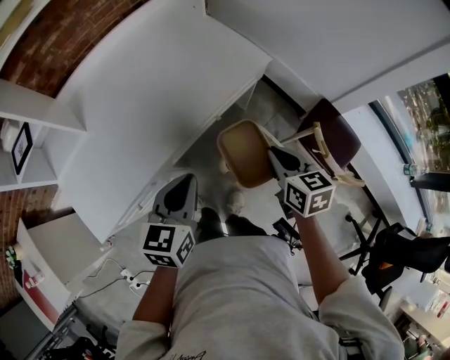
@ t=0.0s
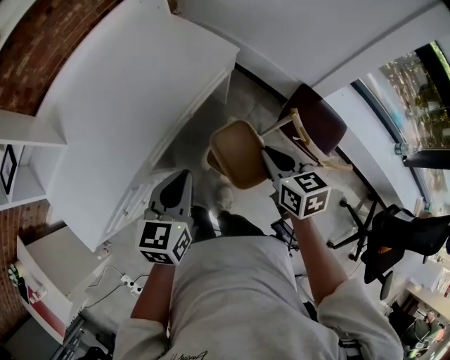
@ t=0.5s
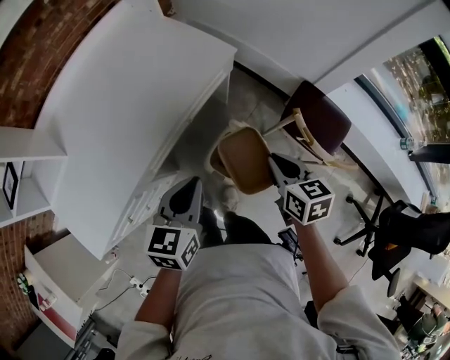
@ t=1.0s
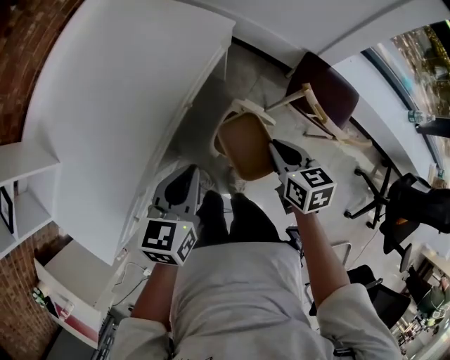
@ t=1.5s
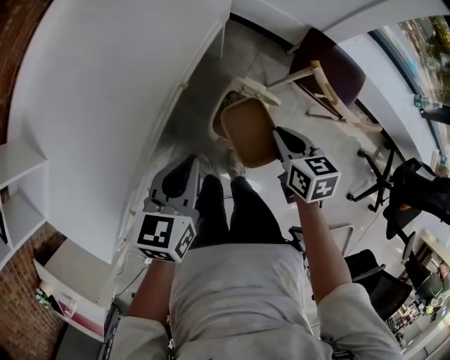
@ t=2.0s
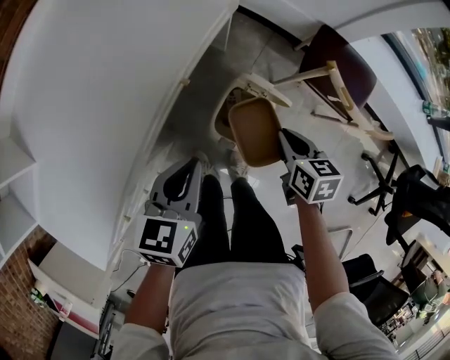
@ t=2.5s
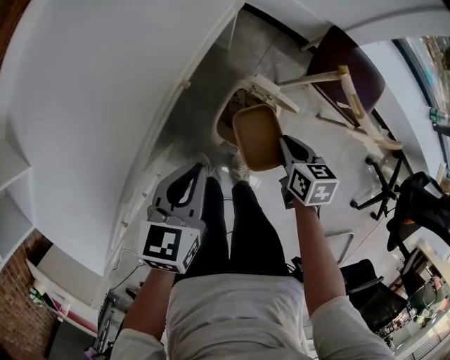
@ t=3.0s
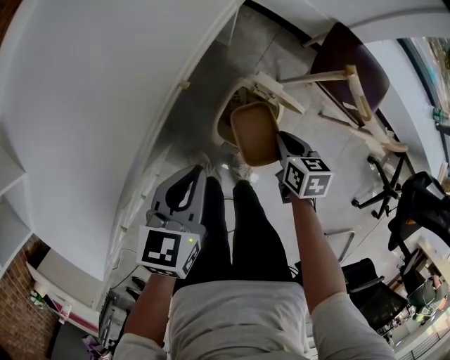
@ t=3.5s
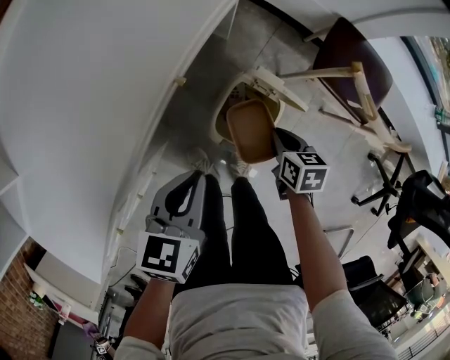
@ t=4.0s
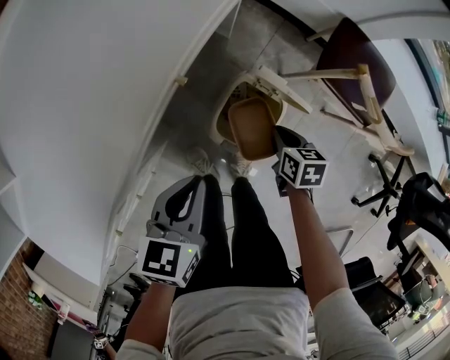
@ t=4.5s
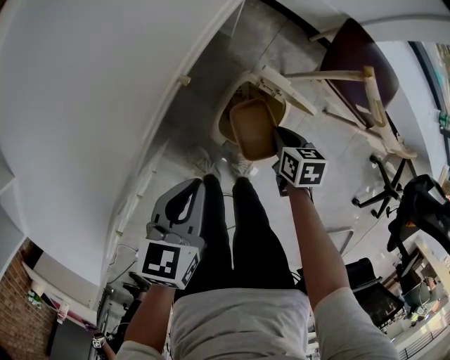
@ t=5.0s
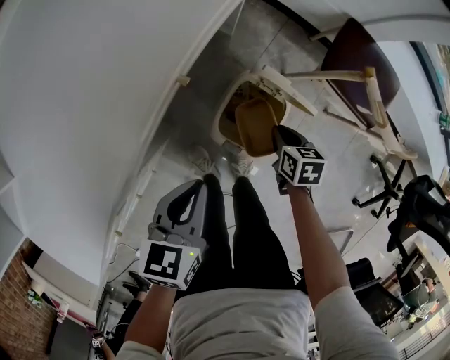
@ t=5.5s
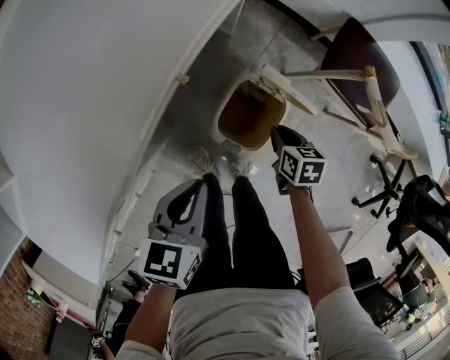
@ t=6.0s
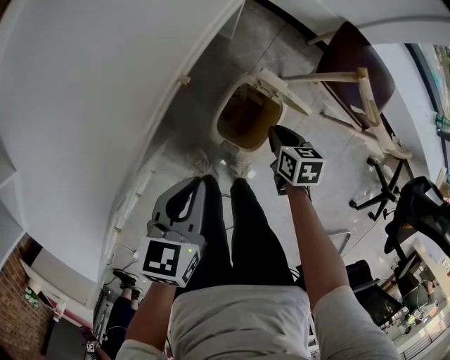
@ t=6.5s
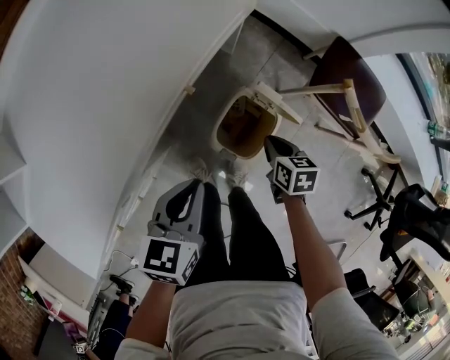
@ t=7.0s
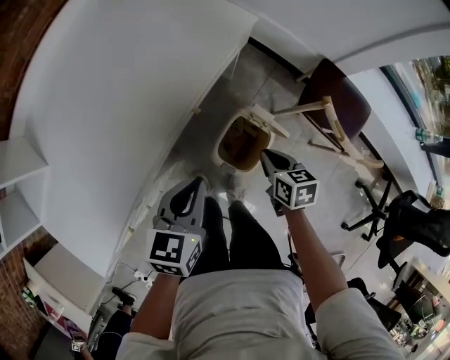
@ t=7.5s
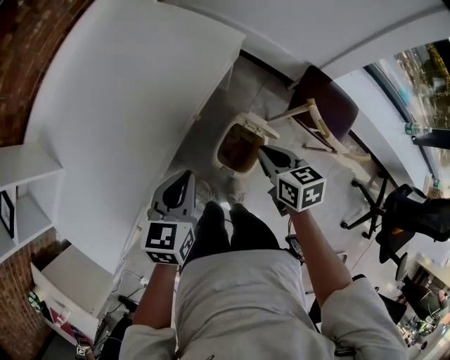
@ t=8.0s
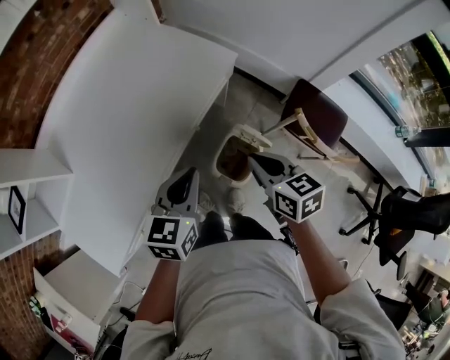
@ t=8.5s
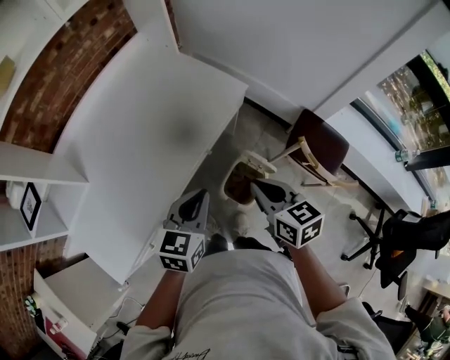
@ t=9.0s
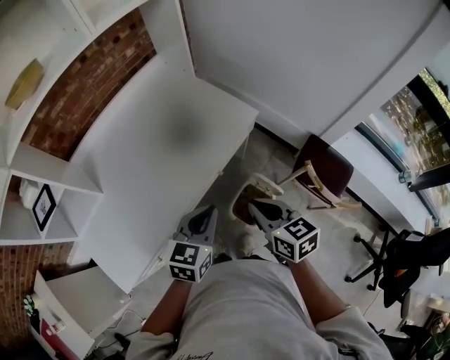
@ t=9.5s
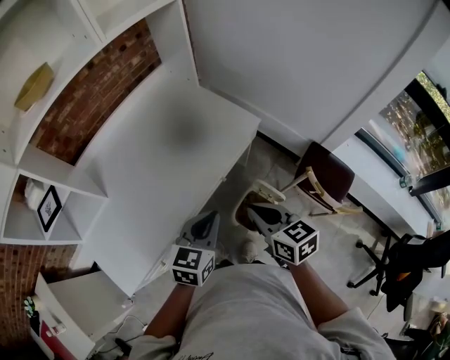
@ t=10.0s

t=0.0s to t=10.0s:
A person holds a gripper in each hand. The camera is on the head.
t=0.0s to t=2.0s: Both grippers travel together downward and to the right, approximately 15 cm. The right gripper turns by about 20 degrees.
t=2.0s to t=4.0s: The left gripper is displaced downward by approximately 10 cm. The right gripper heads downward, covering approximately 20 cm.
t=4.0s to t=6.0s: The grippers stay close to where they were, moving slightly.
t=6.0s to t=8.0s: The right gripper heads upward, covering some 30 cm, and changes its angle by approximately 20 degrees. Meanwhile the left gripper shifts approximately 15 cm upward.
t=8.0s to t=10.0s: The right gripper shifts roughly 20 cm upward and to the left, and turns by roughly 20 degrees, while the left gripper moves upward, about 10 cm.

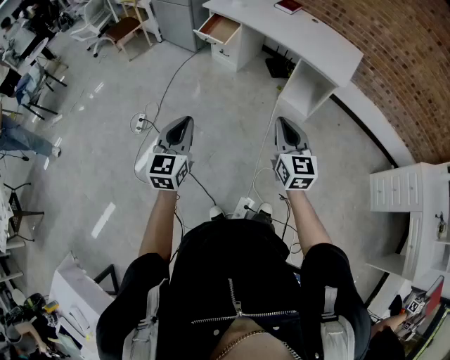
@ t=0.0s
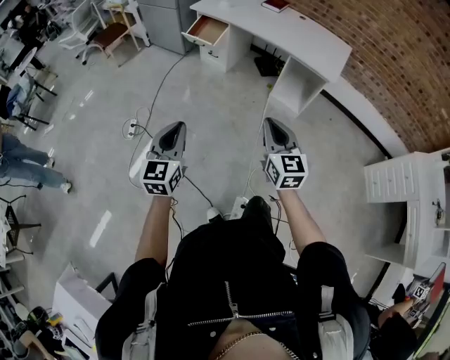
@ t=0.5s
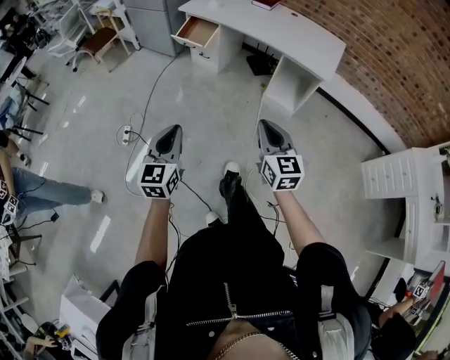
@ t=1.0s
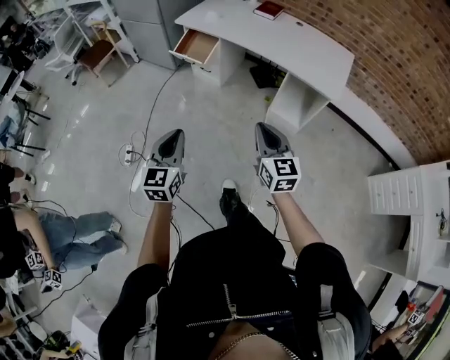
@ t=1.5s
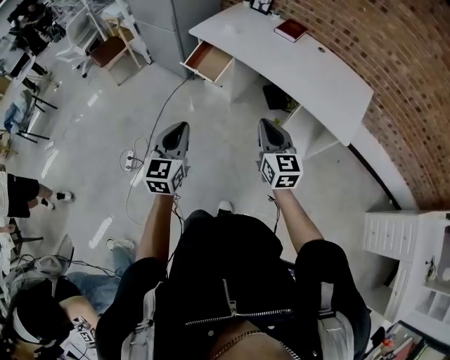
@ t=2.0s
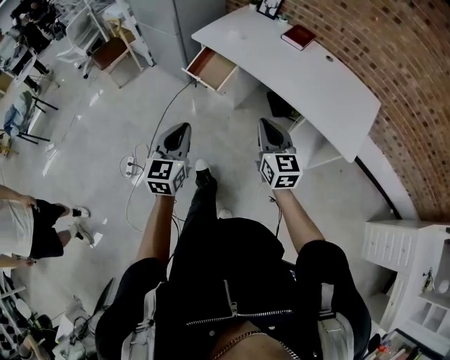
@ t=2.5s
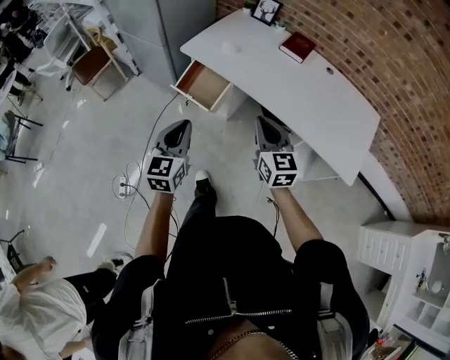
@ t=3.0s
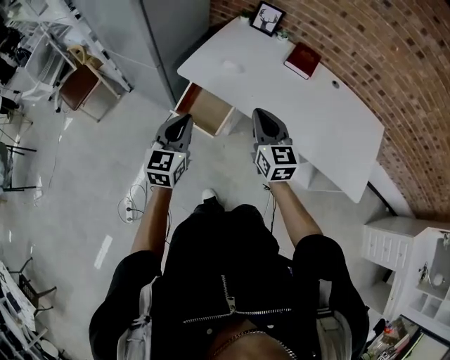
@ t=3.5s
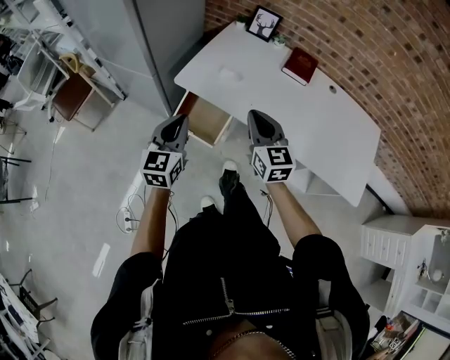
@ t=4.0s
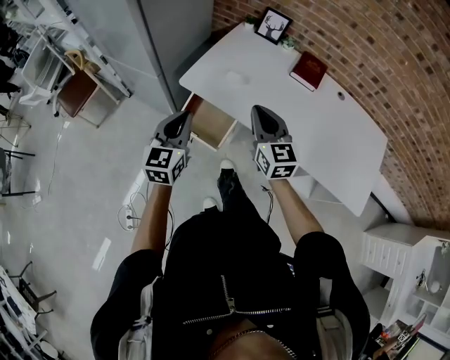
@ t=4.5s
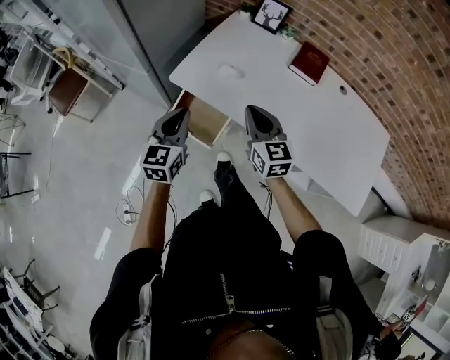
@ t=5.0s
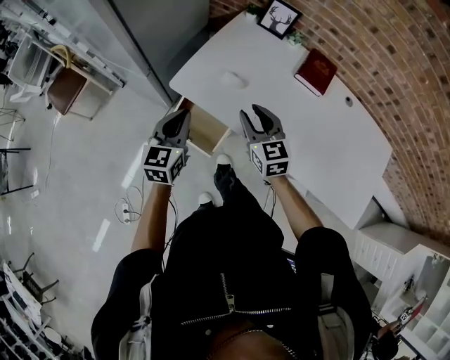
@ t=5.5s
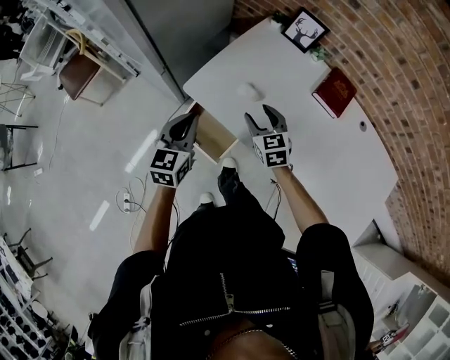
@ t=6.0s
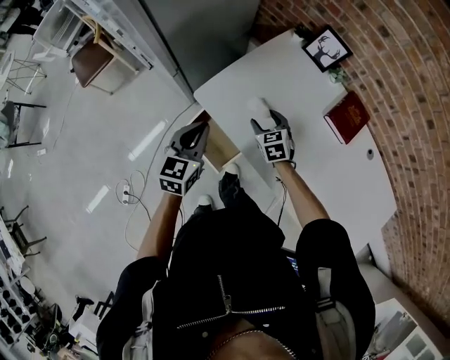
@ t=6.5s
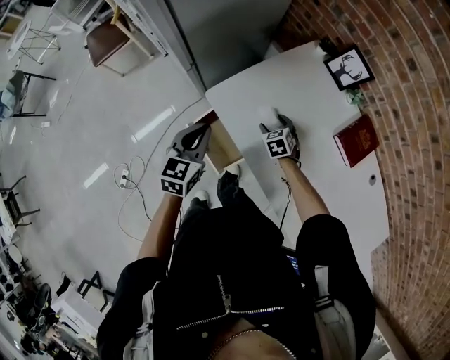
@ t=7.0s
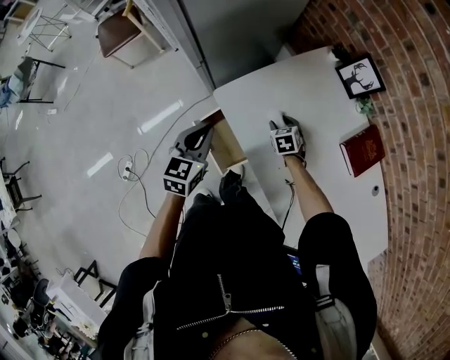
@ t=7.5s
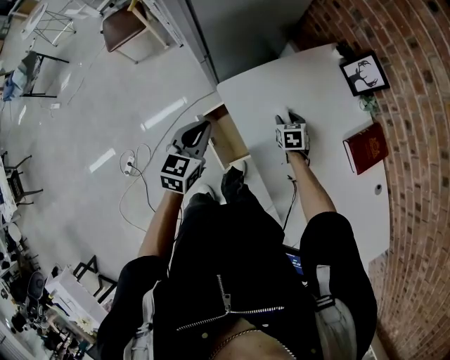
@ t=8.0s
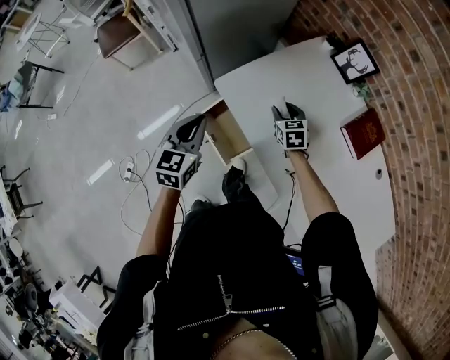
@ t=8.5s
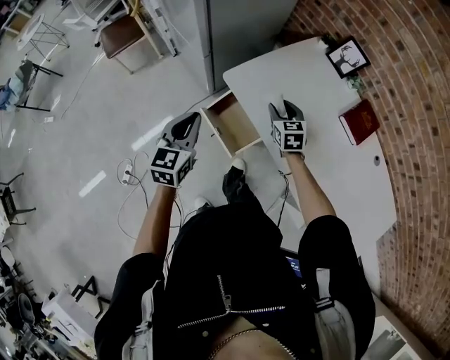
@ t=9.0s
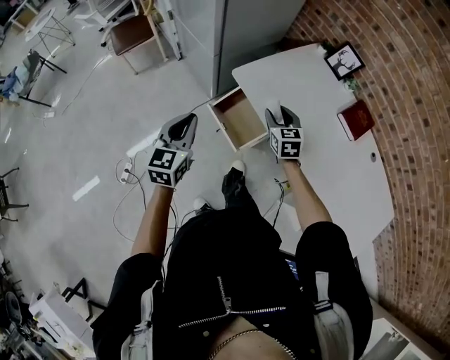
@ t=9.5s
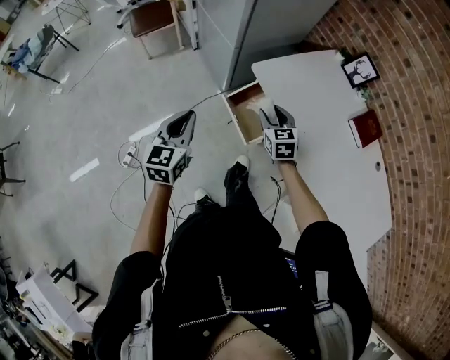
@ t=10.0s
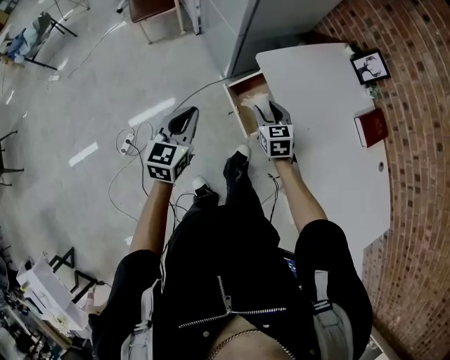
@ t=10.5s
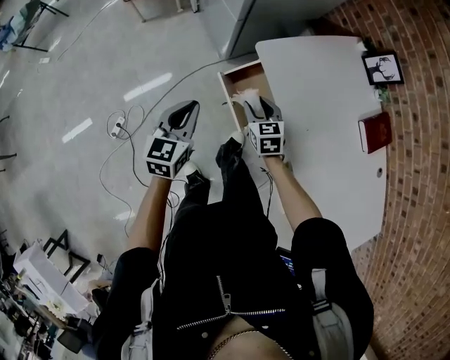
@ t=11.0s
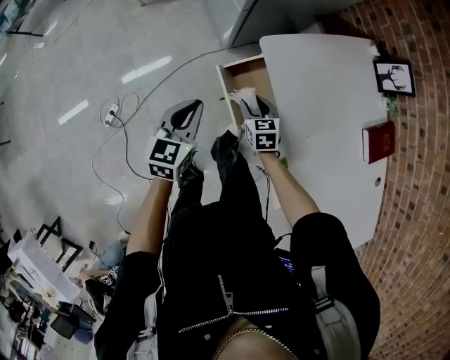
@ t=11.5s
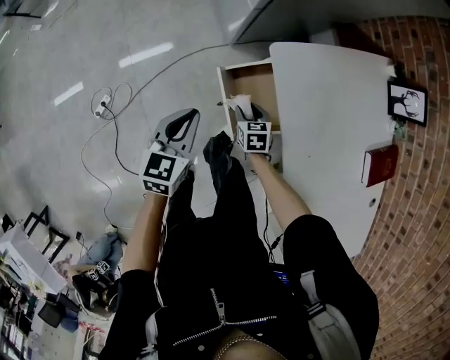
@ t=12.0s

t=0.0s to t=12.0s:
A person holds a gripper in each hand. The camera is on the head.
t=0.0s to t=2.0s: The two grippers go some 35 cm forward.
t=2.0s to t=4.0s: The pair of grippers is taken forward, roughly 50 cm.
t=4.0s to t=6.0s: The right gripper is displaced forward and downward by some 25 cm, changes its angle by roughly 30 degrees, and opens its fingers, while the left gripper moves forward, some 15 cm.
t=6.0s to t=8.0s: The left gripper ends up roughly 5 cm from where it was. Meanwhile the right gripper is displaced downward and forward by some 20 cm, and turns by roughly 20 degrees.
t=8.0s to t=10.0s: The right gripper goes roughly 35 cm backward, to the left and upward, and rotates some 30 degrees; the left gripper goes some 25 cm backward and to the left.
t=10.0s to t=12.0s: The left gripper moves downward and forward, some 20 cm, while the right gripper moves downward, approximately 25 cm, and rotates approximately 30 degrees.

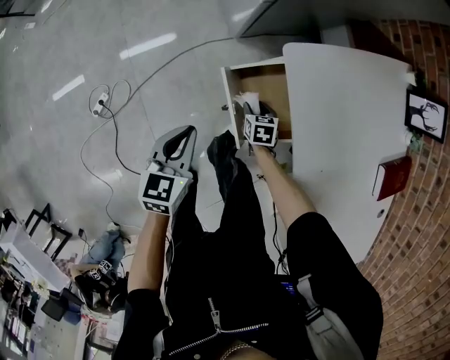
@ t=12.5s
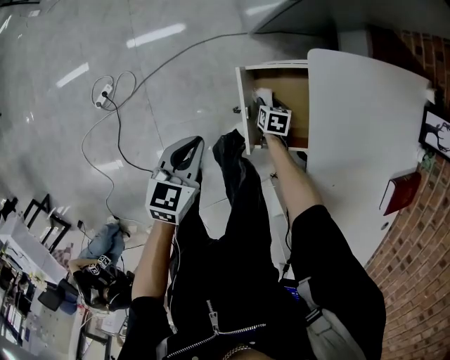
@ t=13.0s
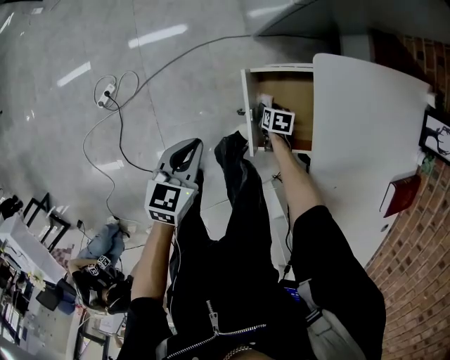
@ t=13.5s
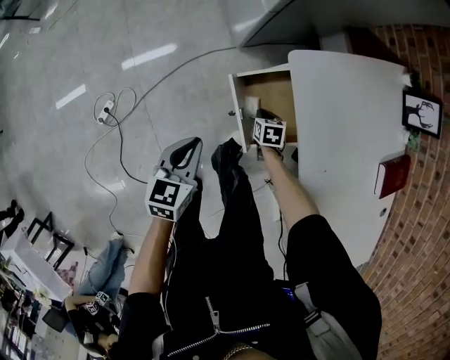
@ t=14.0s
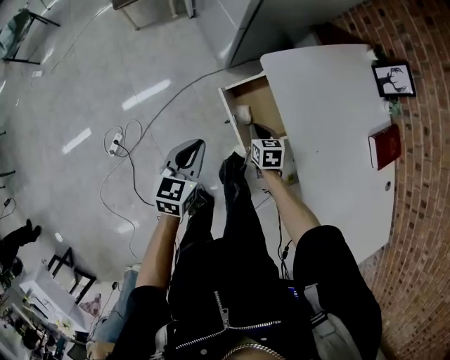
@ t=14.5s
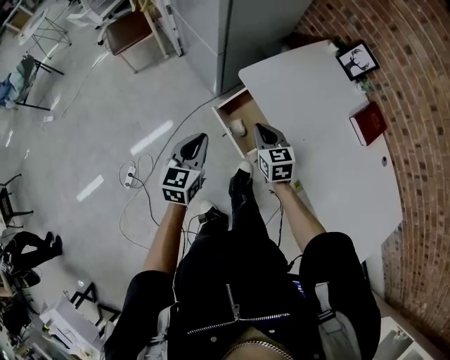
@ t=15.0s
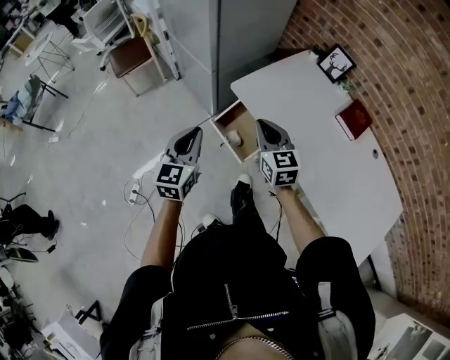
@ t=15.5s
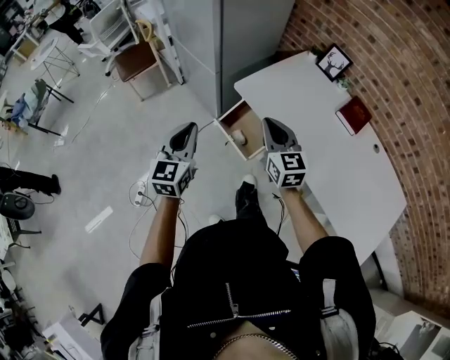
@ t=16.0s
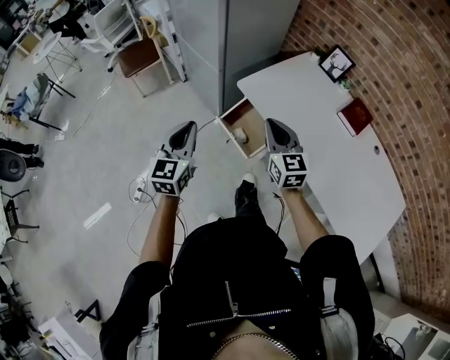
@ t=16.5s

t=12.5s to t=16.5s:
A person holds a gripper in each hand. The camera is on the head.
t=12.5s to t=14.5s: The right gripper goes about 15 cm upward, and closes its fingers, while the left gripper shifts approximately 5 cm upward.
t=14.5s to t=16.5s: The right gripper heads upward, covering about 35 cm, and angles its fingers upward, by roughly 40 degrees. Meanwhile the left gripper heads upward, covering roughly 20 cm, and turns by about 30 degrees.
